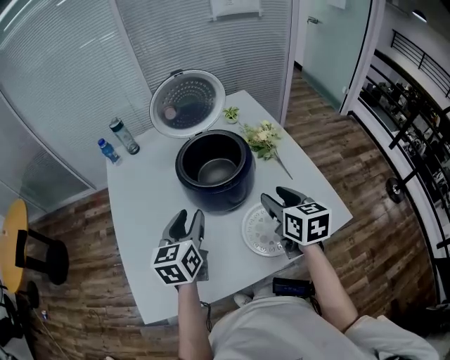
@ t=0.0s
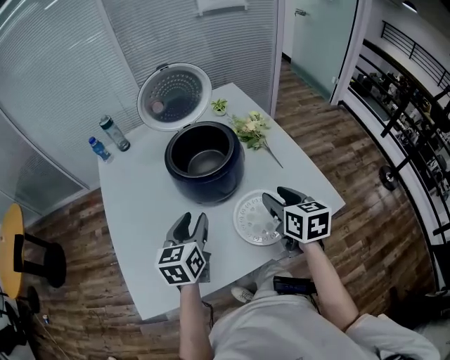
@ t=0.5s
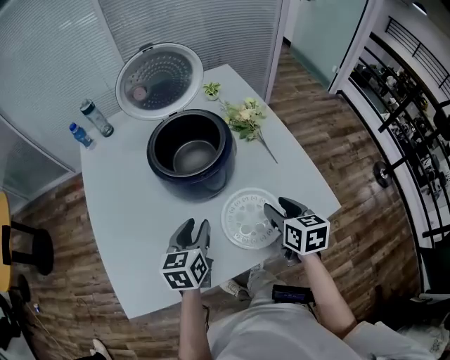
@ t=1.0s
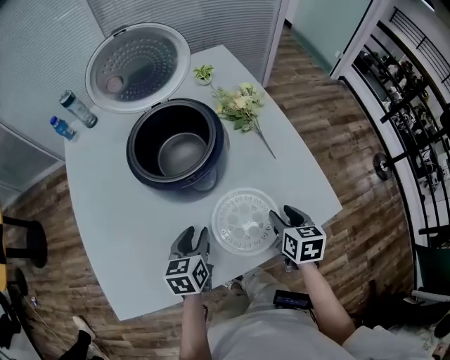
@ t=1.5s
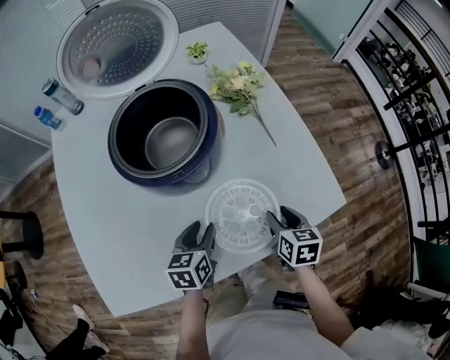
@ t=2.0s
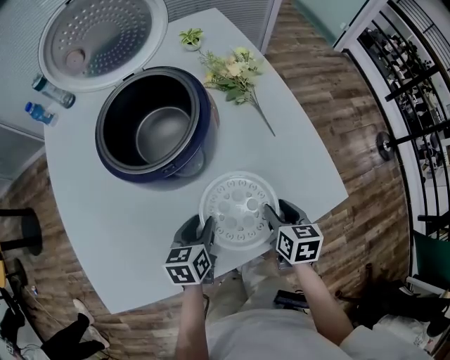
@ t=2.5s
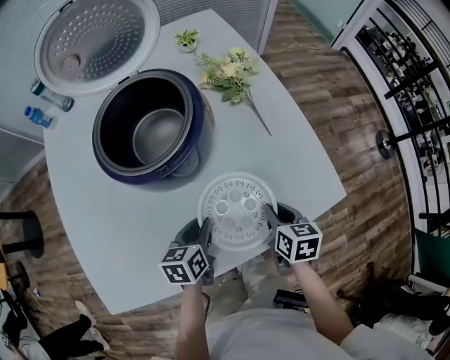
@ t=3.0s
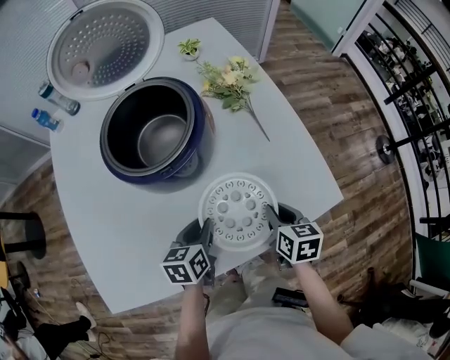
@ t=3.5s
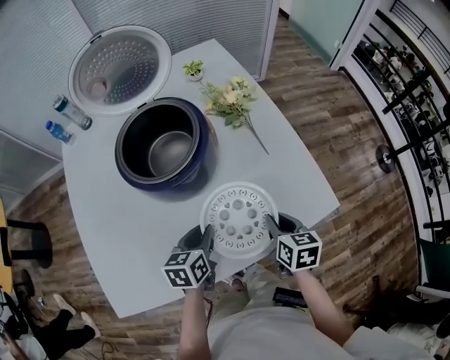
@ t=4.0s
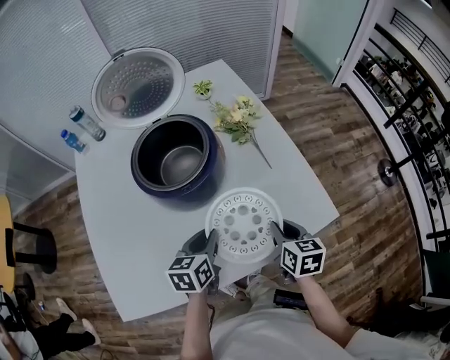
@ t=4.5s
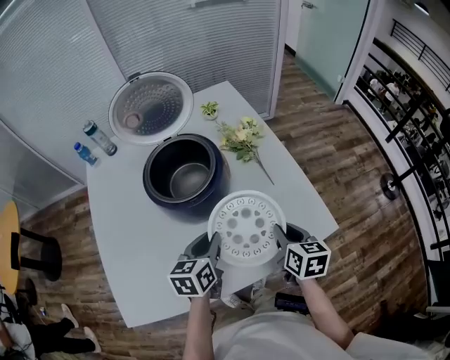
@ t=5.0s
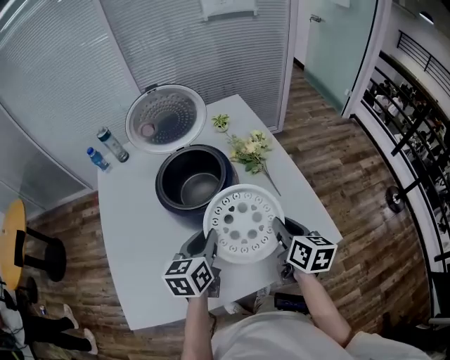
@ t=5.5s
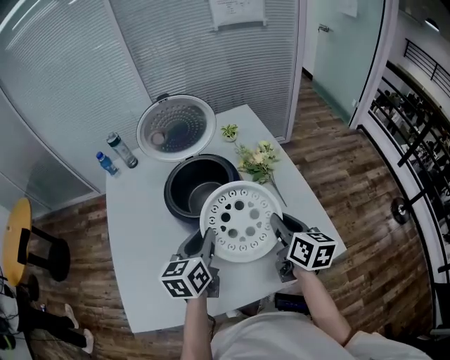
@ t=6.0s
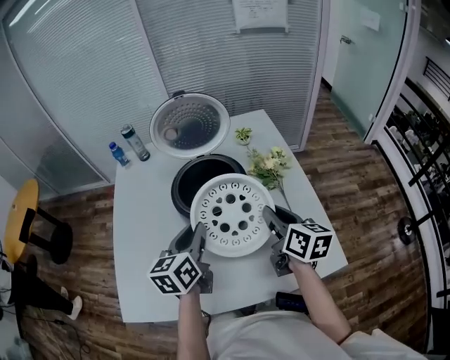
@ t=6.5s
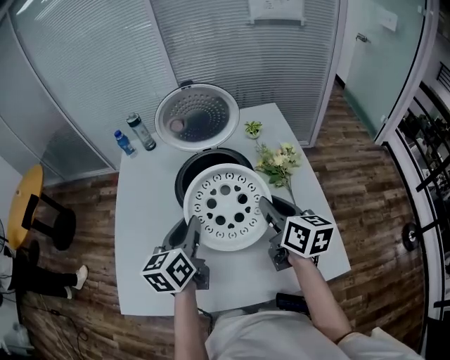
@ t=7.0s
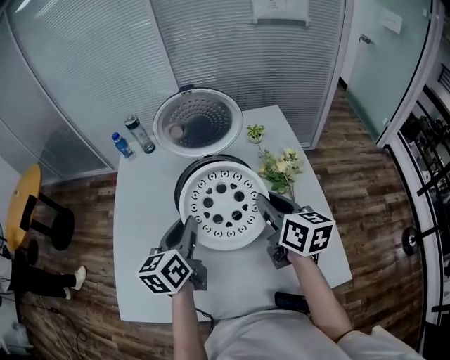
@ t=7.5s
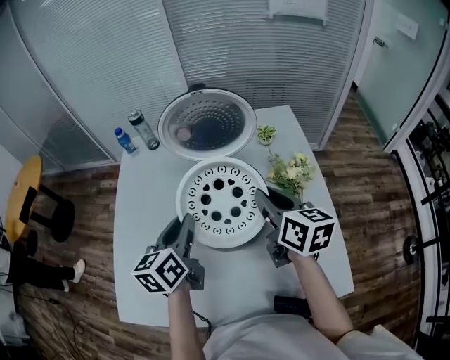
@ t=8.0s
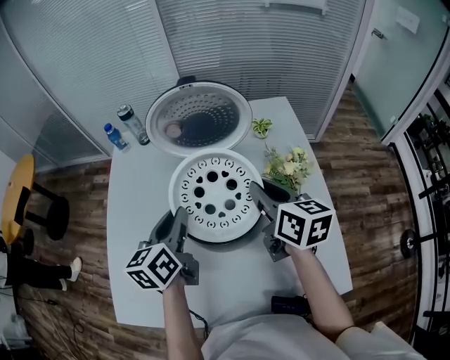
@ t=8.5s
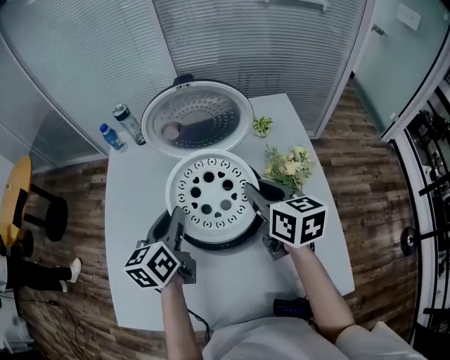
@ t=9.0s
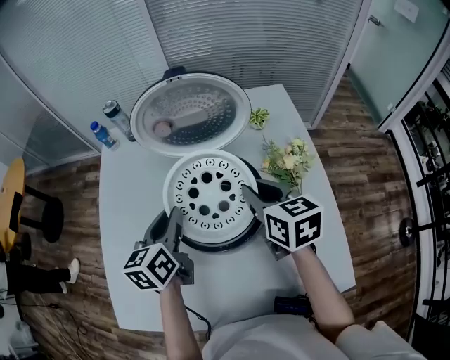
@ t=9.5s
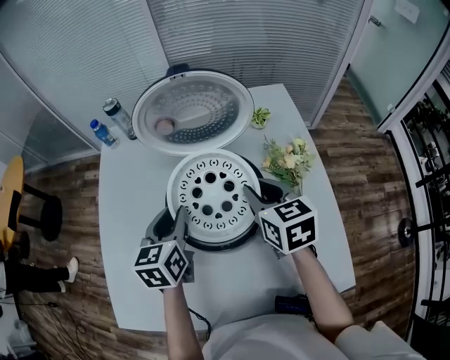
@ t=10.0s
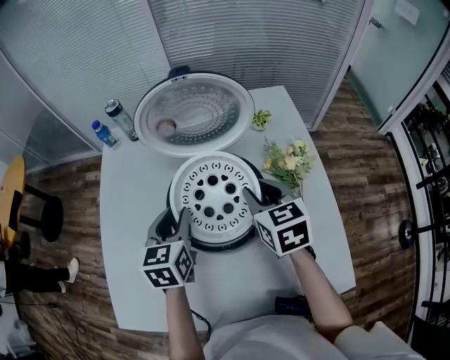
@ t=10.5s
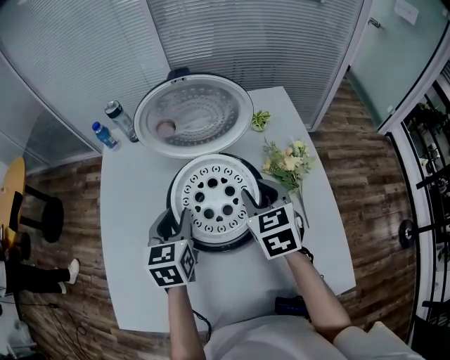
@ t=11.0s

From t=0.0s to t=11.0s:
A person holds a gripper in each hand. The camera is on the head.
From t=0.0s to t=2.0s: The two grippers go roughly 25 cm downward and to the right. The left gripper changes its angle by some 30 degrees, while the right gripper rotates about 20 degrees.
From t=2.0s to t=3.5s: The right gripper closes up.
From t=3.5s to t=5.5s: The two grippers go approximately 20 cm upward. The right gripper turns by roughly 20 degrees.
From t=5.5s to t=7.5s: The left gripper moves to the left, forward and upward, some 15 cm, and turns by roughly 20 degrees; the right gripper goes about 20 cm forward, upward and to the left, and changes its angle by some 20 degrees.
From t=7.5s to t=9.0s: Both grippers move forward, approximately 10 cm.
From t=9.0s to t=11.0s: The left gripper changes its angle by roughly 20 degrees; the right gripper changes its angle by approximately 30 degrees.

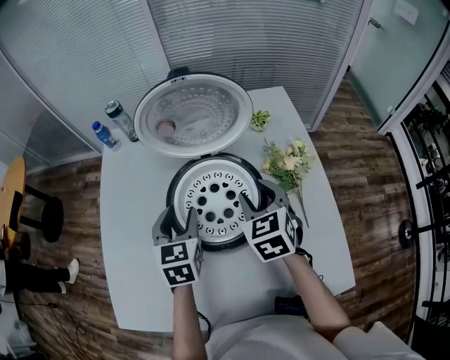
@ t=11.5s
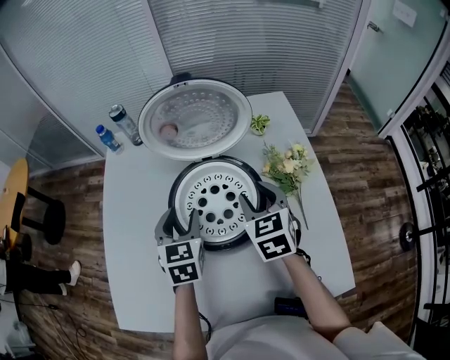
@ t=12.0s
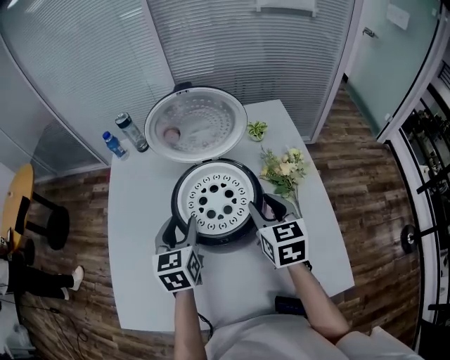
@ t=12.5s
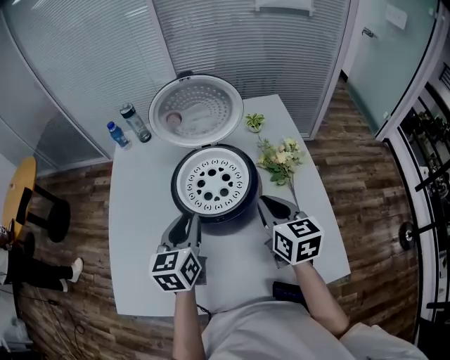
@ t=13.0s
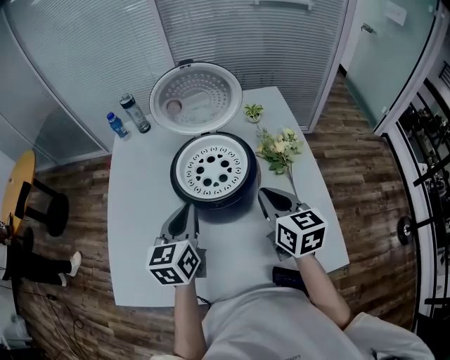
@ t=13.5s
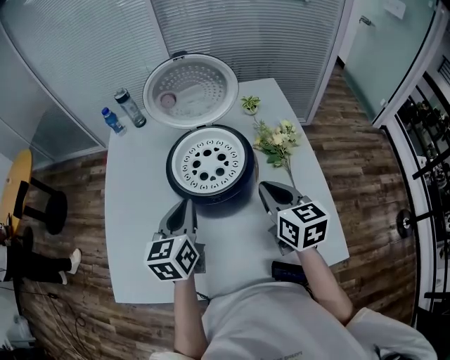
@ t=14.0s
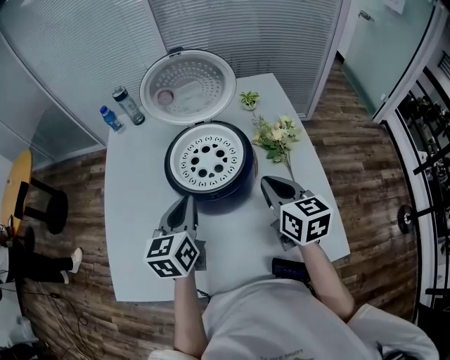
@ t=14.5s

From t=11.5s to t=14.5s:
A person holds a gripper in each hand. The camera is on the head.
From t=11.5s to t=13.0s: The grippers both shift backward by roughly 10 cm. The right gripper rotates roughly 30 degrees, and closes; the left gripper closes.
From t=13.0s to t=14.5s: The grippers move only a little.

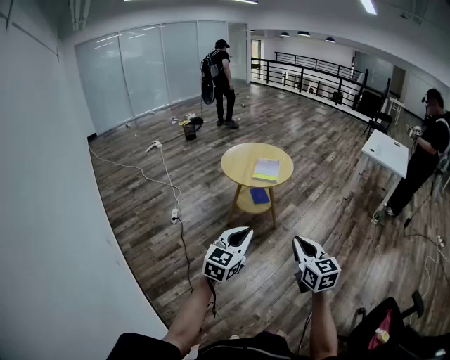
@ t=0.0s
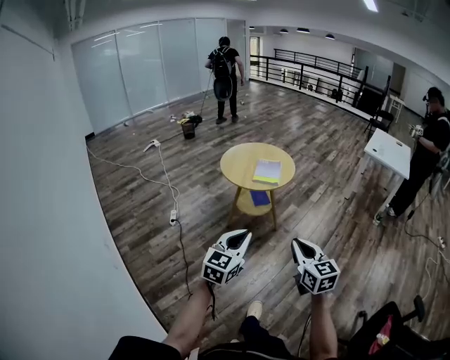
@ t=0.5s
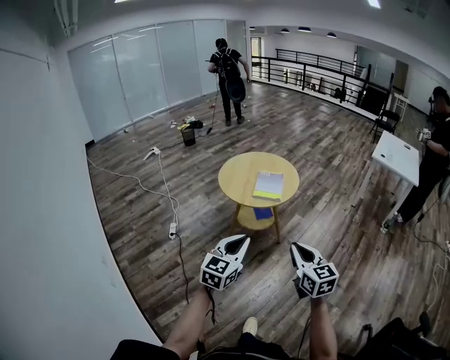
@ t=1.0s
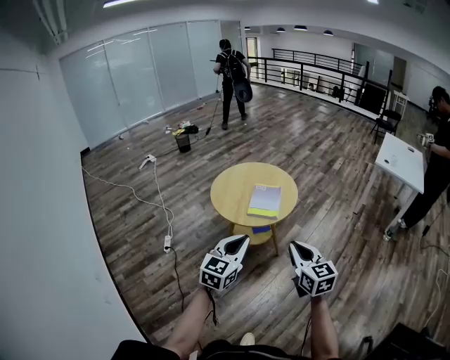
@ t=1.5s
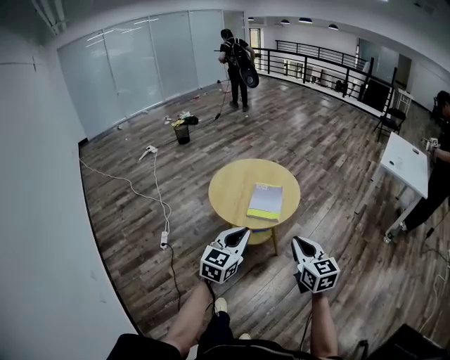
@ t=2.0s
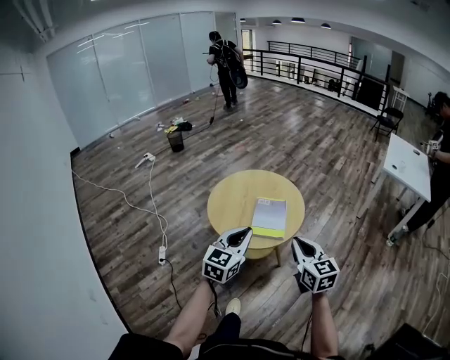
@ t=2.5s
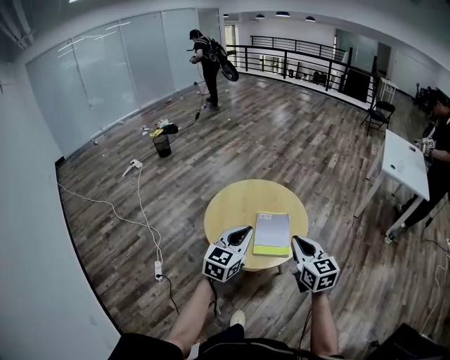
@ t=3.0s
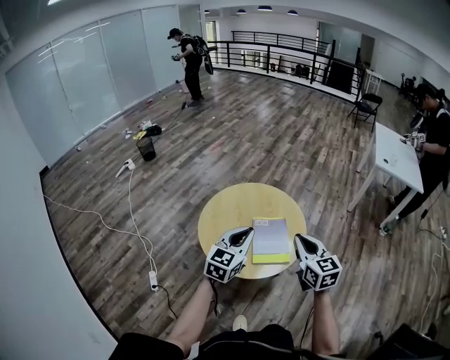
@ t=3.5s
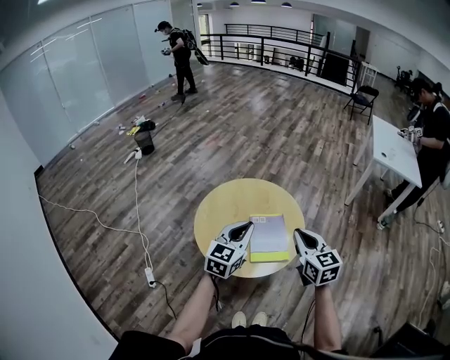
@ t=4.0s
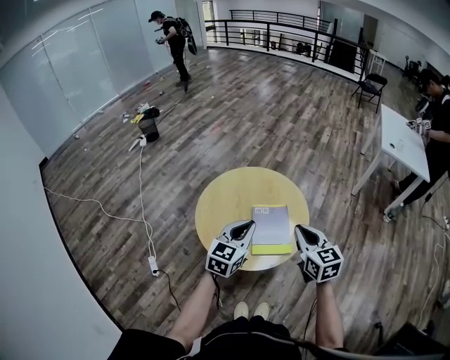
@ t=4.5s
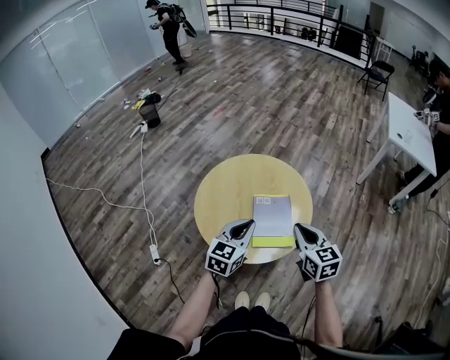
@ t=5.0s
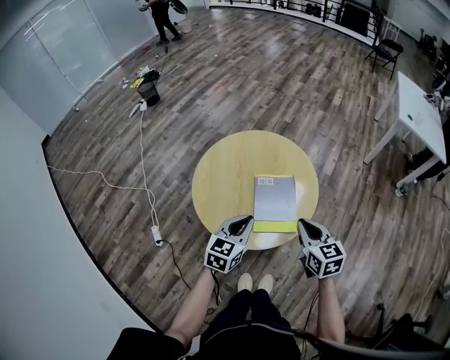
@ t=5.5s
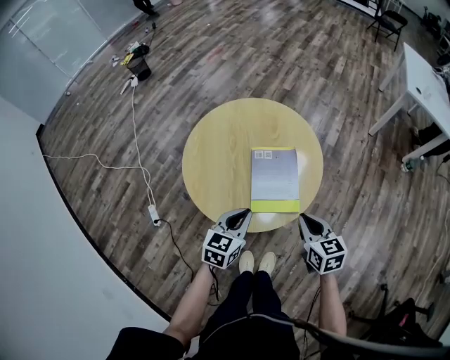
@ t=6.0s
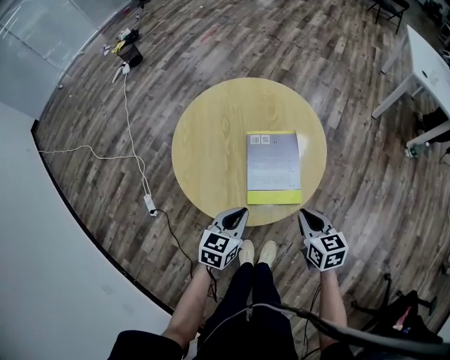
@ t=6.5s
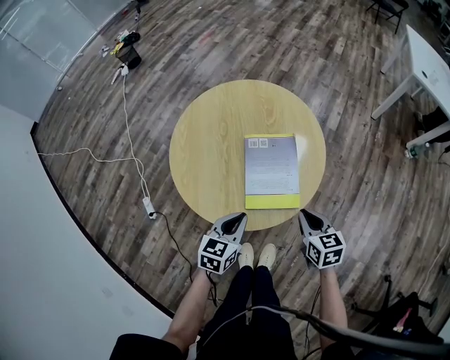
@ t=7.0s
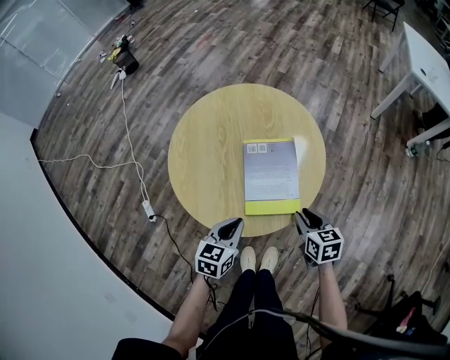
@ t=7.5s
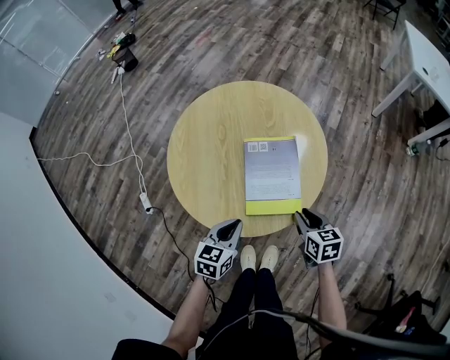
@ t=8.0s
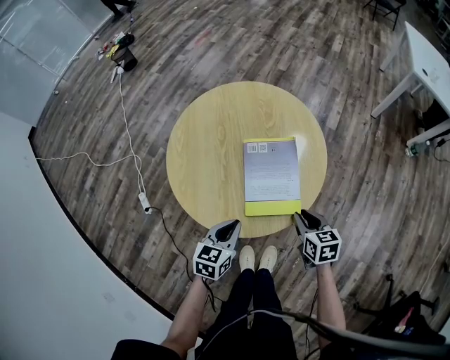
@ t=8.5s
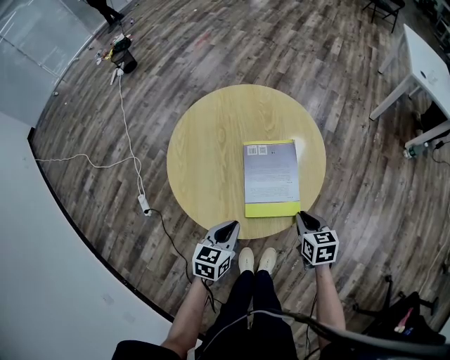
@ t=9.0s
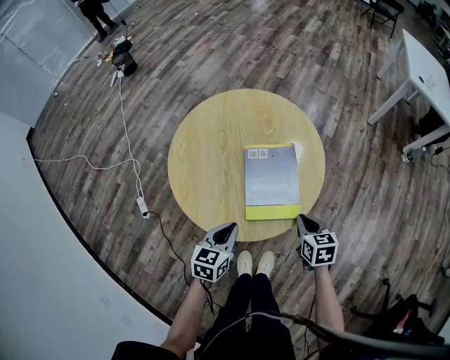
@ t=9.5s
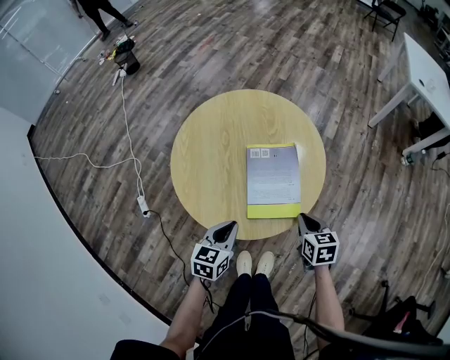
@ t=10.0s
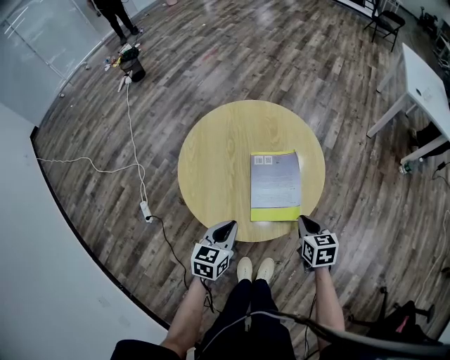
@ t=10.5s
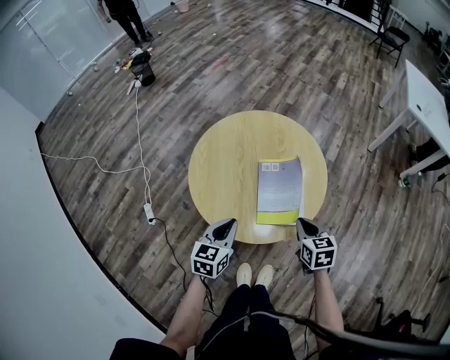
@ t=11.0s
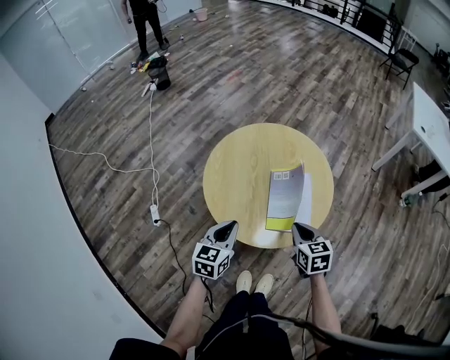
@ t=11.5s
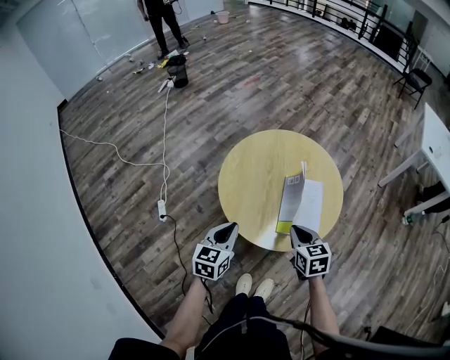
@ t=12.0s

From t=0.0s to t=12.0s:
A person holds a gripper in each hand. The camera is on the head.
From t=0.0s to t=2.0s: The two grippers go approximately 40 cm forward.
From t=2.0s to t=4.0s: Both grippers travel together forward, approximately 30 cm.
From t=4.0s to t=6.0s: The grippers both shift downward by roughly 20 cm. The right gripper swivels roughly 20 degrees. Meanwhile the left gripper rotates about 20 degrees.
From t=6.0s to t=8.0s: The grippers both shift downward by about 10 cm.
From t=8.0s to t=10.0s: The grippers move only a little.
From t=10.0s to t=12.0s: The two grippers go approximately 15 cm to the left and upward.

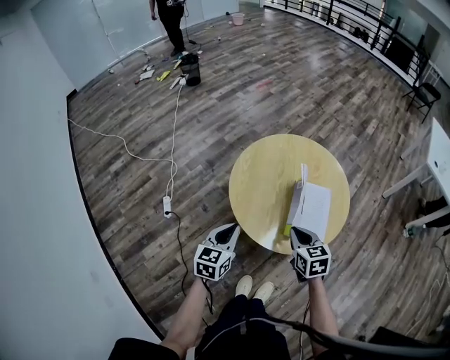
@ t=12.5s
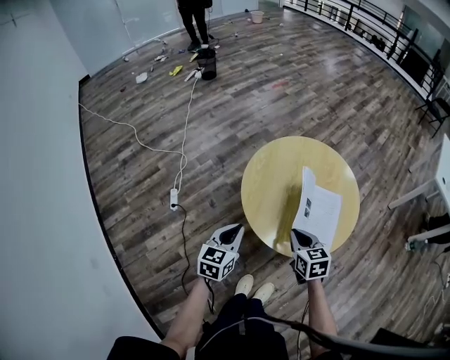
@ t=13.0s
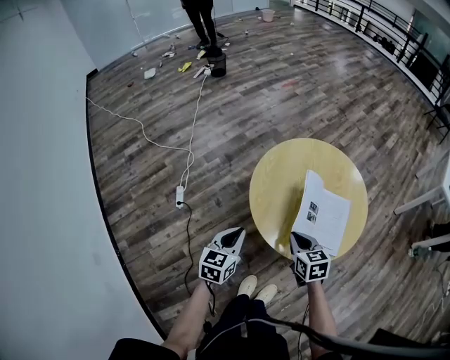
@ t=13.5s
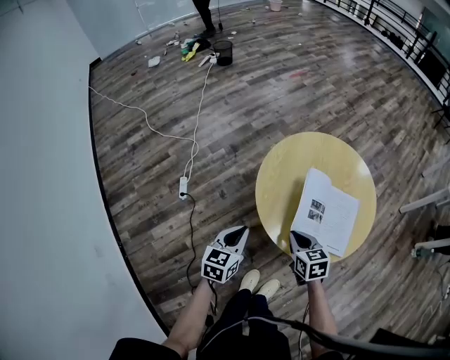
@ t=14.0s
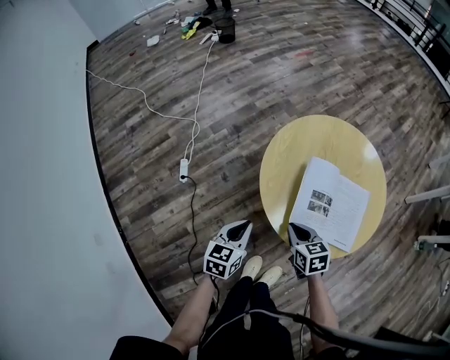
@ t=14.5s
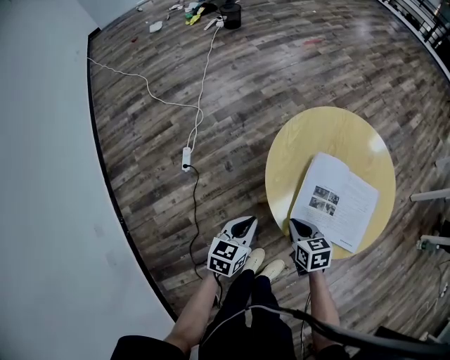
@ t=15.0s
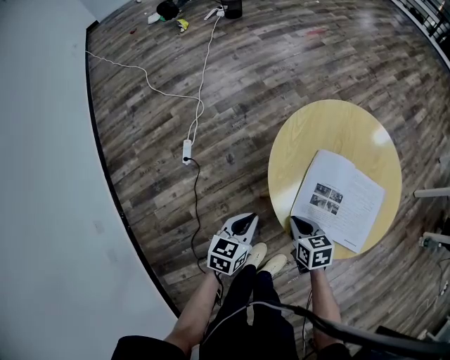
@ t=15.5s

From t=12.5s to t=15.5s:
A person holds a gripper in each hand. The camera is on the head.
From t=12.5s to t=14.0s: The right gripper shifts roughly 10 cm to the left and downward. Meanwhile the left gripper shifts by about 5 cm.
From t=14.0s to t=15.5s: Both grippers travel together downward, roughly 10 cm.
